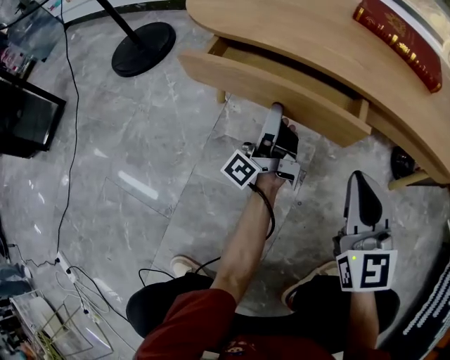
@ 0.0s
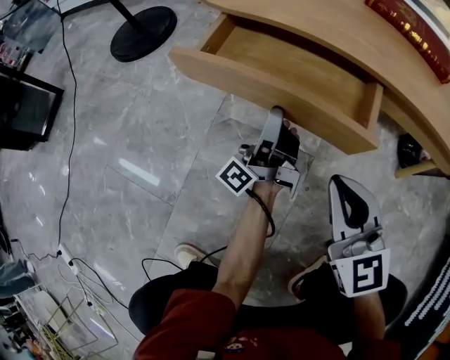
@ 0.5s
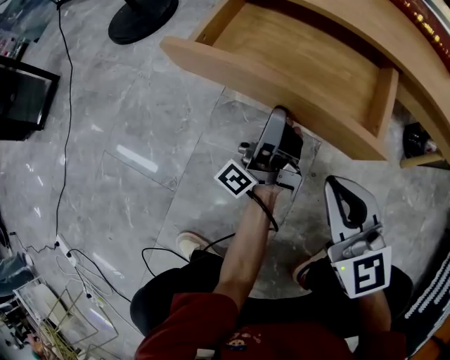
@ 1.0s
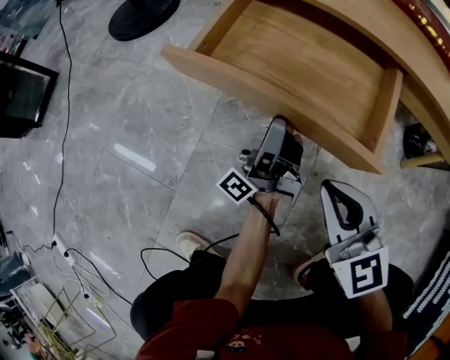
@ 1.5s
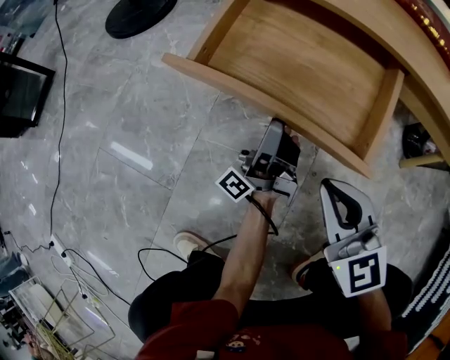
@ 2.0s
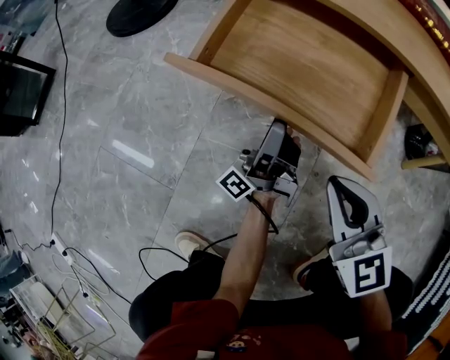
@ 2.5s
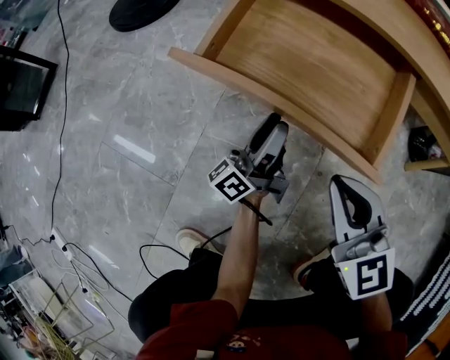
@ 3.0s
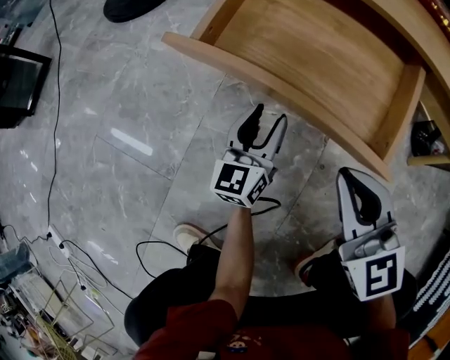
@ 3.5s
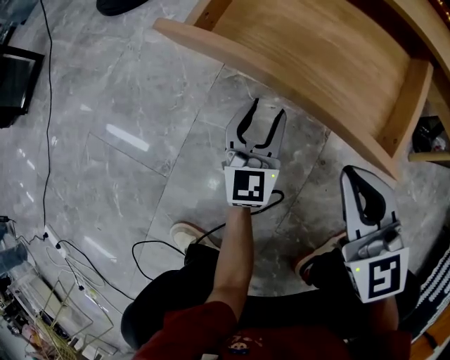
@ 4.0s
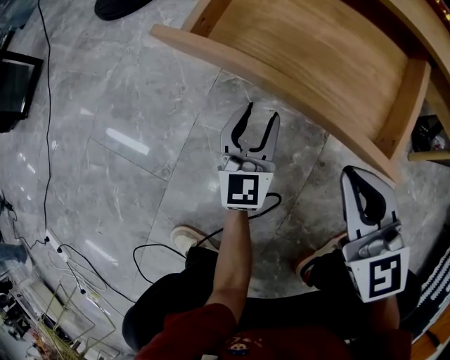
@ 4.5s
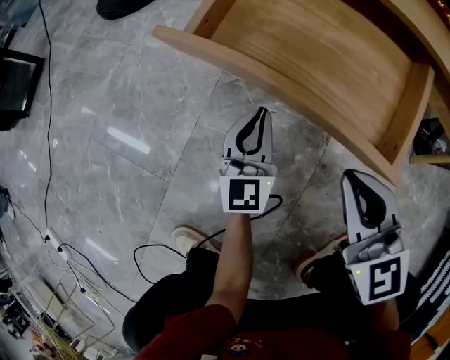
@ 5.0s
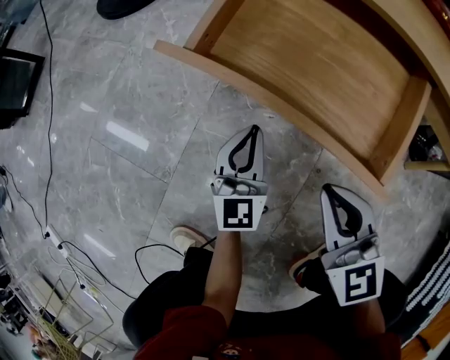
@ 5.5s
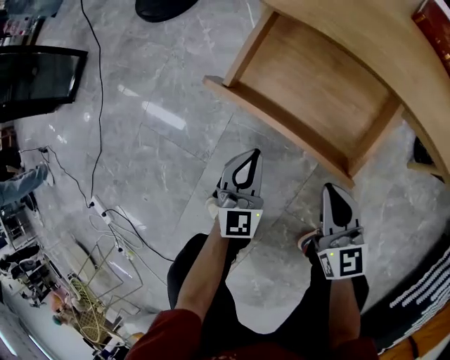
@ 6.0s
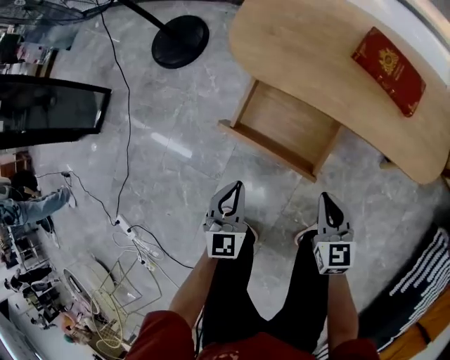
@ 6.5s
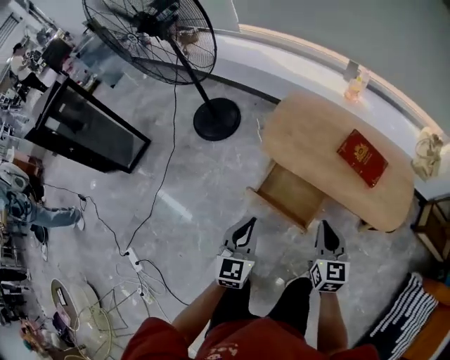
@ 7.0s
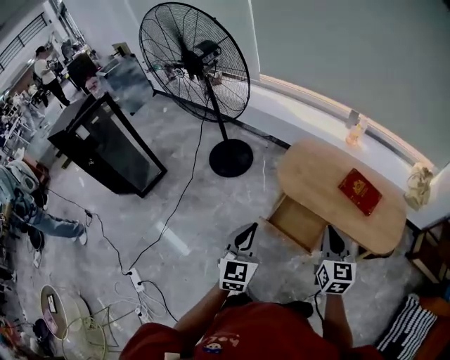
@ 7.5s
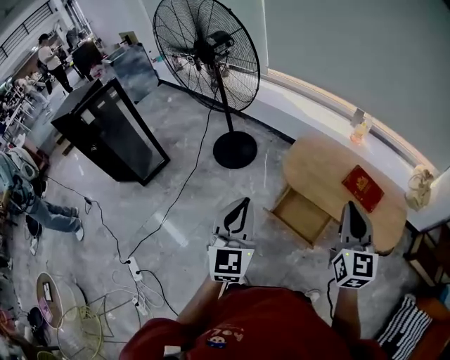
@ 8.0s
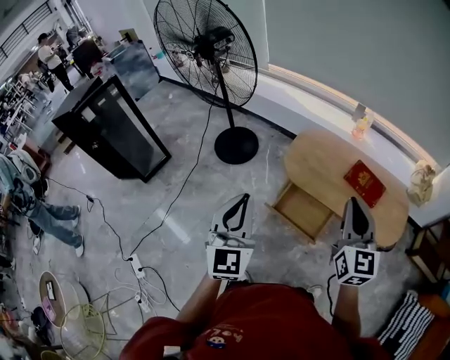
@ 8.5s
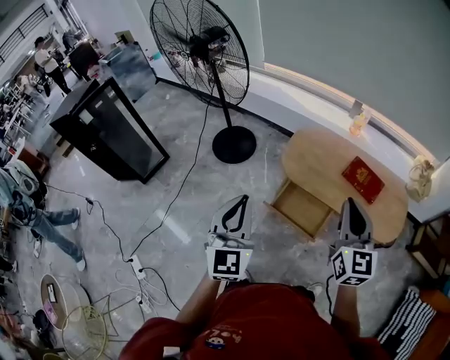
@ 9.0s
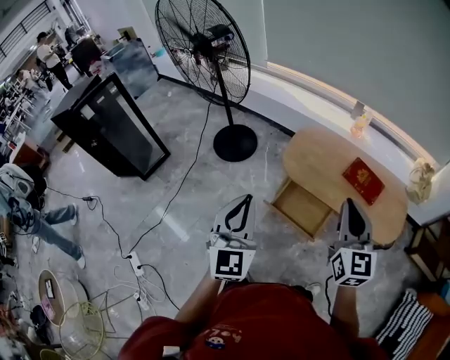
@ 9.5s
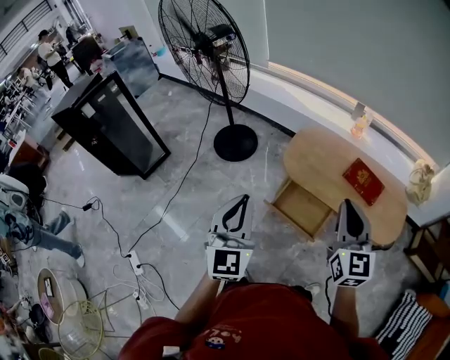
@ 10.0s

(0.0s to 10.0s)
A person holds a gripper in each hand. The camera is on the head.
0.0s - 2.0s: The right gripper goes some 15 cm to the left, downward and backward, and rotates some 20 degrees, while the left gripper travels backward and to the left by roughly 10 cm.
2.0s - 4.0s: The left gripper shifts about 5 cm downward, and twists roughly 90 degrees clockwise, seen from behind.
4.0s - 6.0s: The left gripper travels upward by roughly 15 cm, rotates some 20 degrees, and closes, while the right gripper is displaced upward by about 5 cm, and changes its angle by about 20 degrees.
6.0s - 8.0s: The two grippers go about 70 cm upward. The left gripper rotates about 20 degrees. The right gripper turns by approximately 30 degrees.
8.0s - 10.0s: The grippers move only a little.

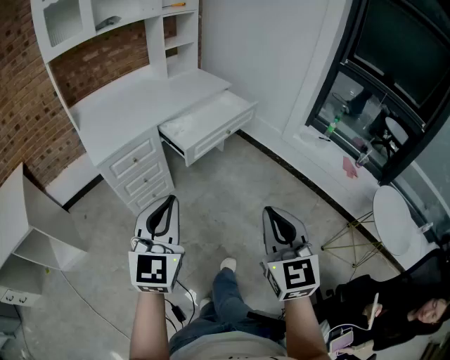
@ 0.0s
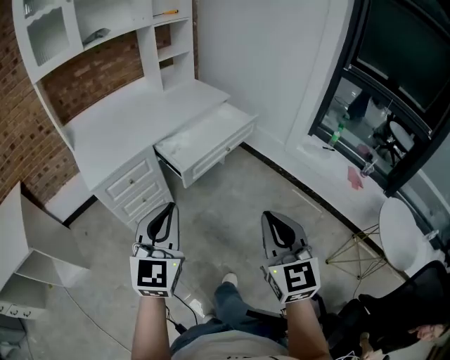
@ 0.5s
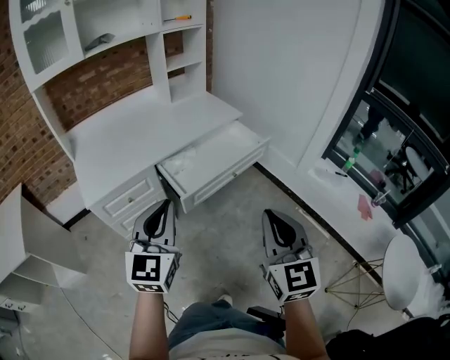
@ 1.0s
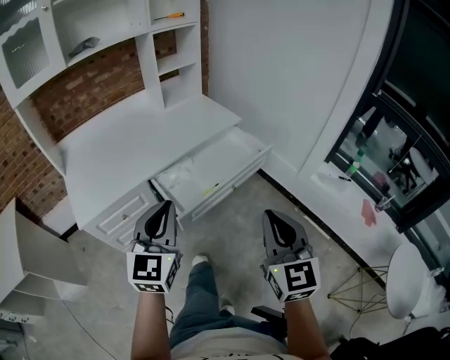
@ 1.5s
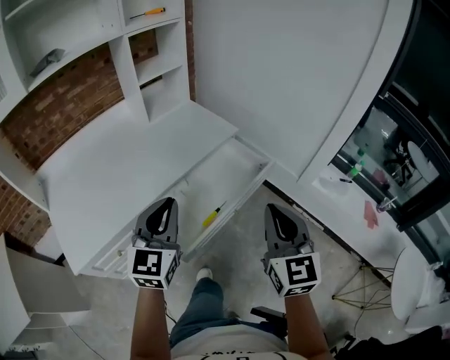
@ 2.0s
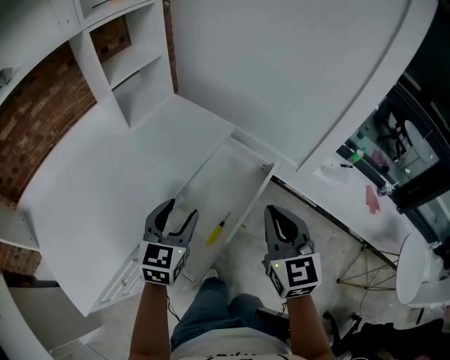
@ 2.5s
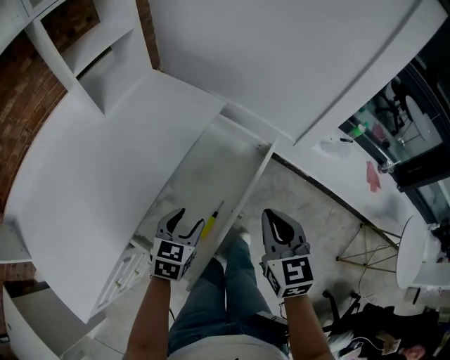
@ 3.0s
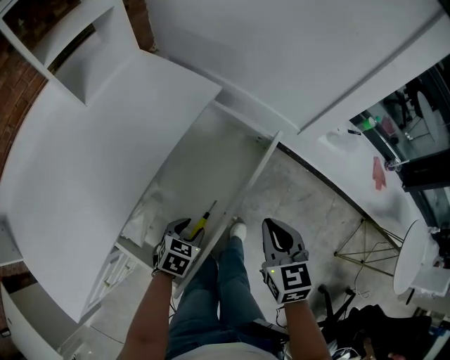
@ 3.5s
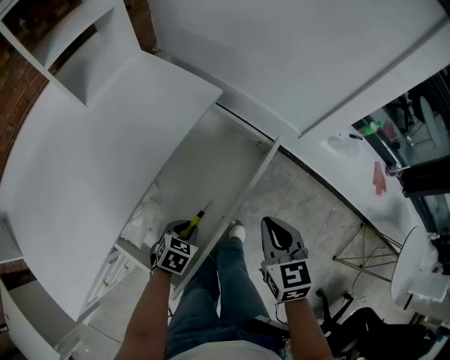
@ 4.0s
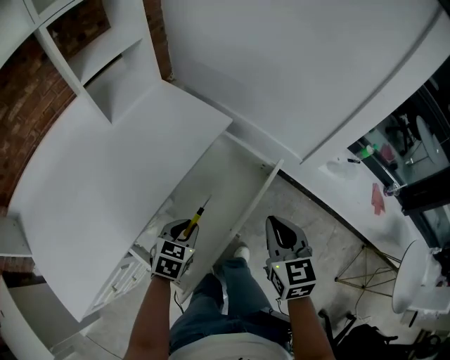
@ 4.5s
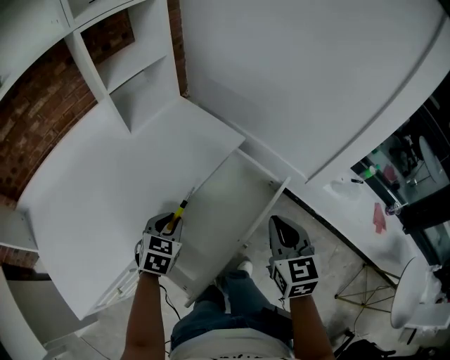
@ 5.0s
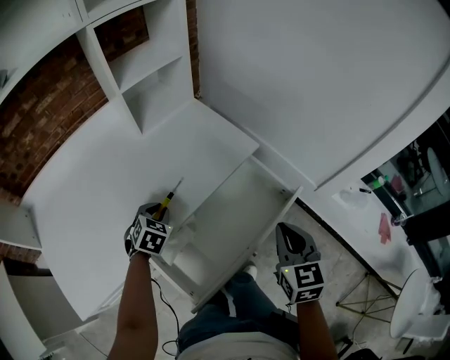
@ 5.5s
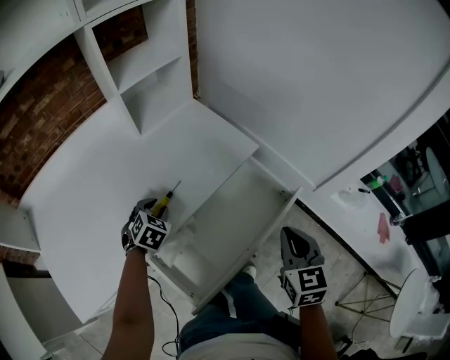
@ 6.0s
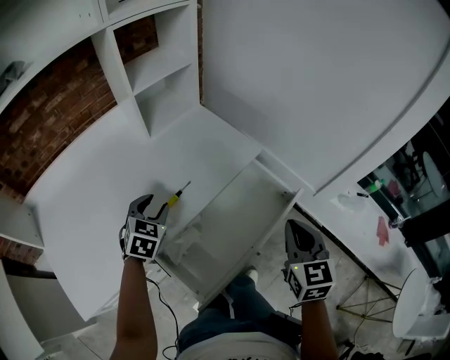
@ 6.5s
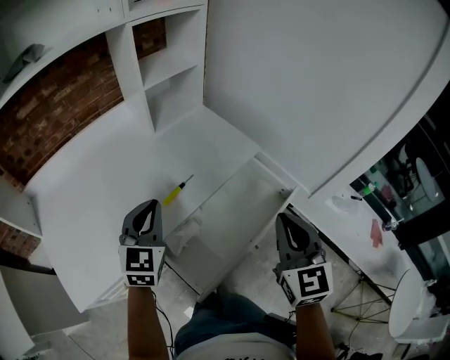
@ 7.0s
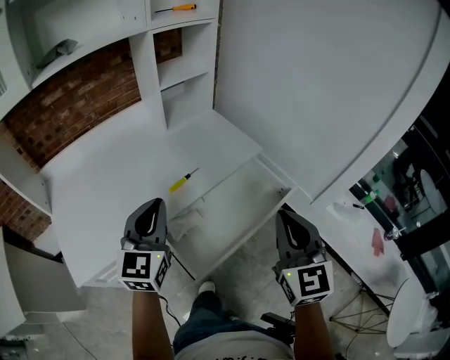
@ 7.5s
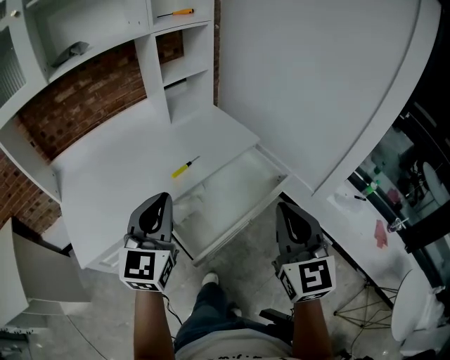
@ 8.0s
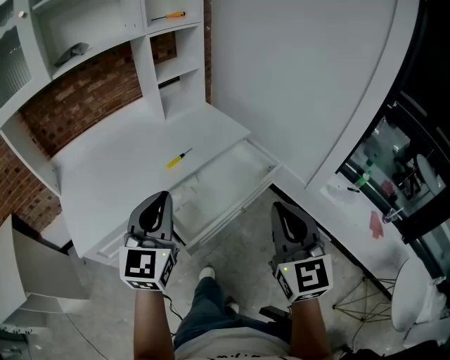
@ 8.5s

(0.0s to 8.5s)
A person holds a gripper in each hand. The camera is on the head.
0.0s - 2.0s: The pair of grippers is taken forward, roughly 50 cm.
2.0s - 4.0s: The left gripper travels downward by approximately 40 cm, points its fingers roughly 50 degrees further downward, and opens and closes again, while the right gripper moves downward and forward, some 25 cm, and tips its fingers downward by roughly 30 degrees.
4.0s - 6.5s: The left gripper swings up and down, approximately 20 cm each way, with 2 reversals, rotates approximately 30 degrees, and opens up; the right gripper moves upward and to the left, approximately 15 cm.
6.5s - 8.5s: The two grippers go roughly 35 cm backward and upward. The right gripper swivels roughly 30 degrees. Meanwhile the left gripper points its fingers some 40 degrees further upward, and closes its fingers.

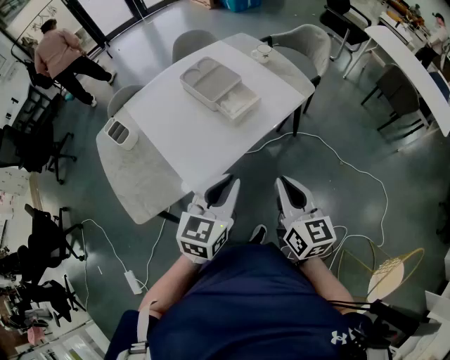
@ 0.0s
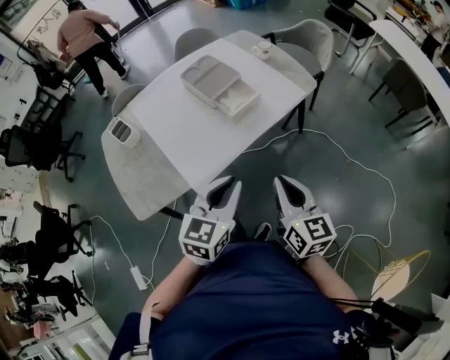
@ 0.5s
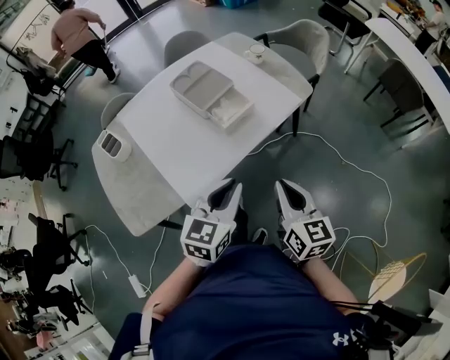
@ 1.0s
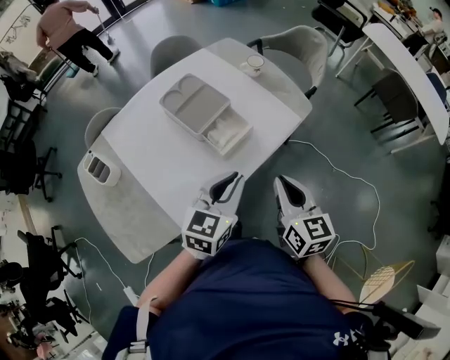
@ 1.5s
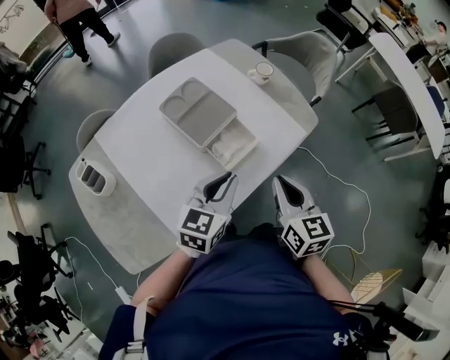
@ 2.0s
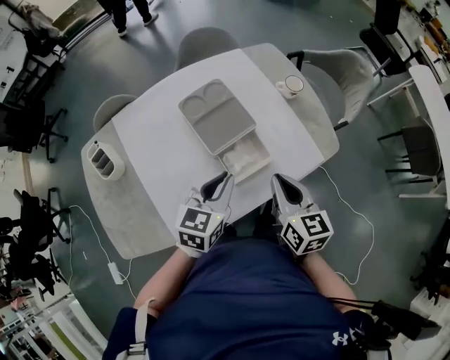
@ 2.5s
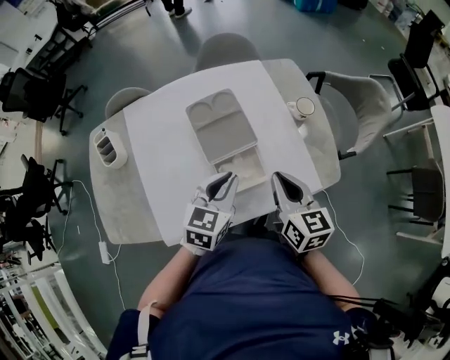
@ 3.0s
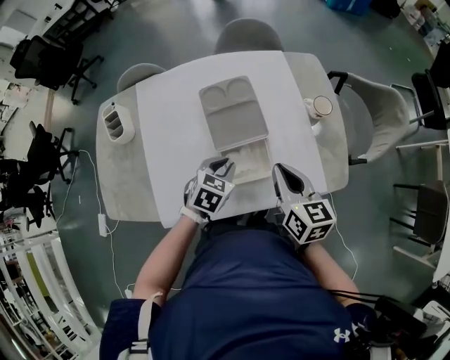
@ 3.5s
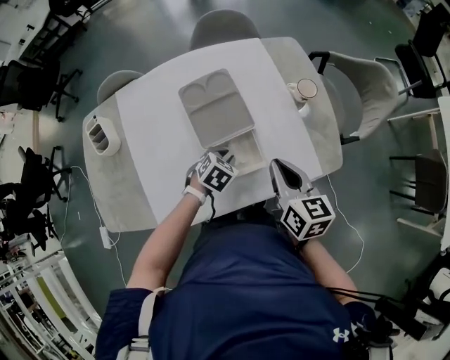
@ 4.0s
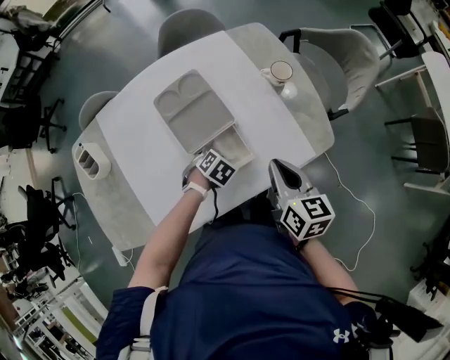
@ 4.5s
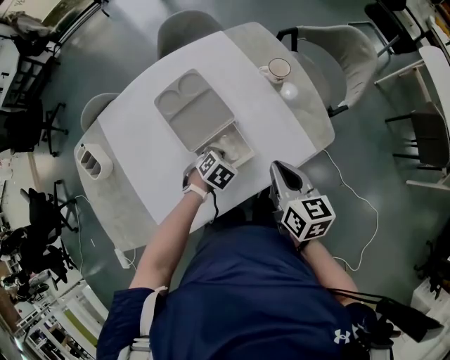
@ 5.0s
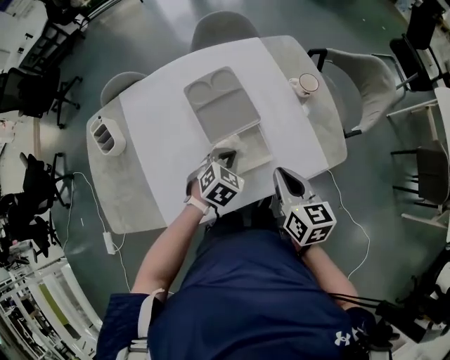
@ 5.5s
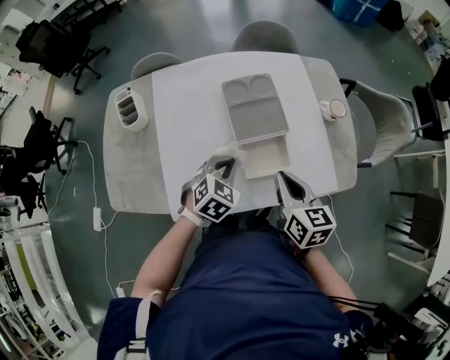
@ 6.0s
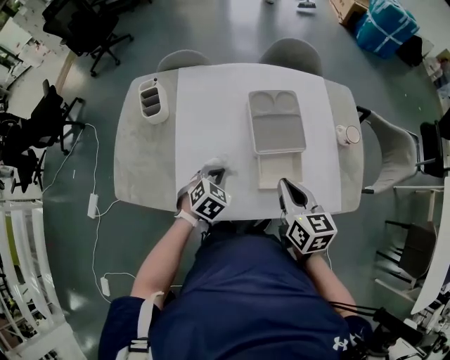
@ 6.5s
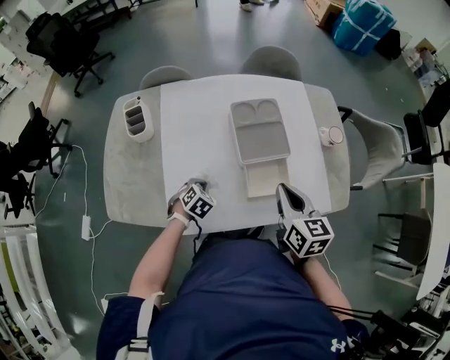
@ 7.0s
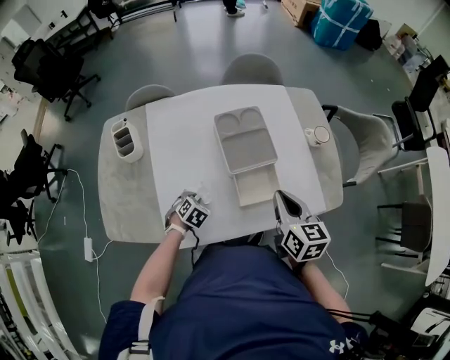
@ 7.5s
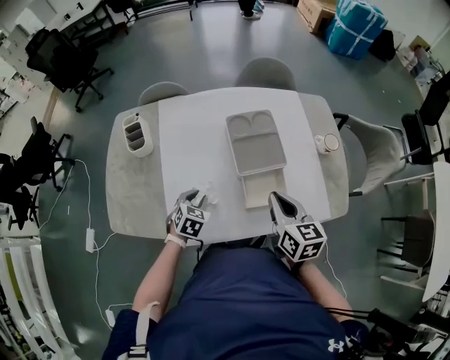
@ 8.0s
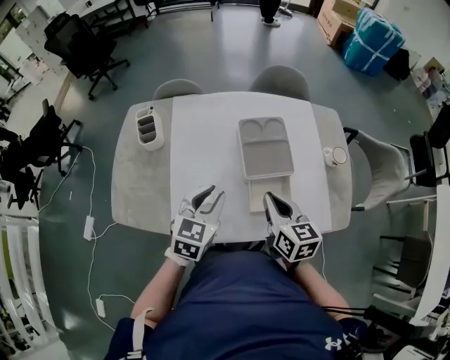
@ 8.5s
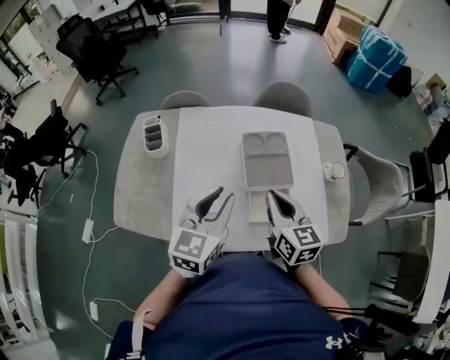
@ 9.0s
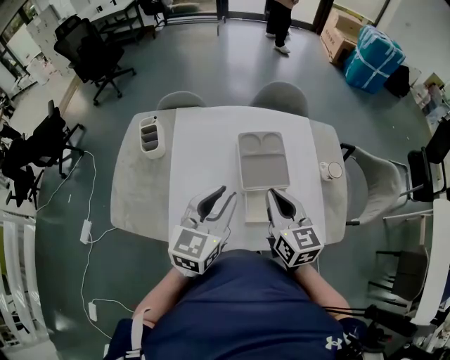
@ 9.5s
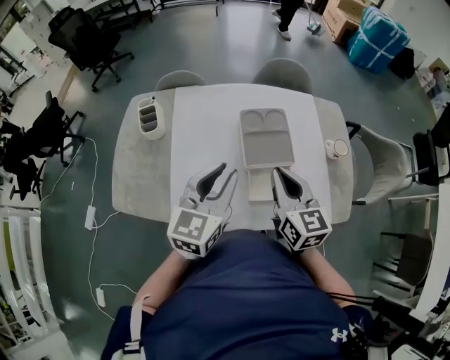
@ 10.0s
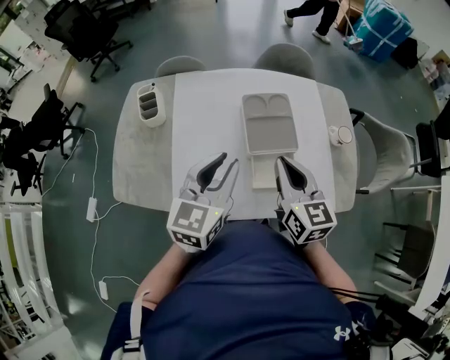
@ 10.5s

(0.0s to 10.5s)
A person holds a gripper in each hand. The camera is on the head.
0.0s - 2.0s: Both grippers move forward, roughly 25 cm.
2.0s - 4.0s: The right gripper moves about 15 cm, and changes its angle by approximately 30 degrees. Meanwhile the left gripper is displaced downward by some 20 cm, and points its fingers approximately 40 degrees further downward.
4.0s - 6.5s: The right gripper shifts by about 15 cm. The left gripper swings up and down, roughly 15 cm each way, with 2 reversals, and turns by some 20 degrees.
6.5s - 8.5s: The left gripper shifts approximately 15 cm upward, turns by roughly 30 degrees, and opens.
8.5s - 10.5s: The two grippers go roughly 5 cm upward.
